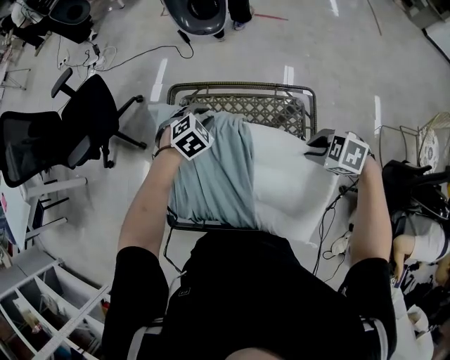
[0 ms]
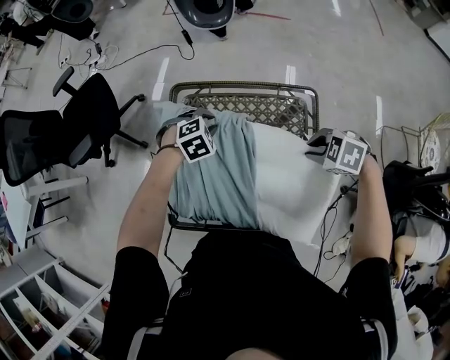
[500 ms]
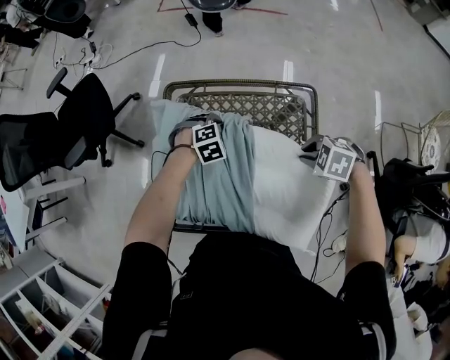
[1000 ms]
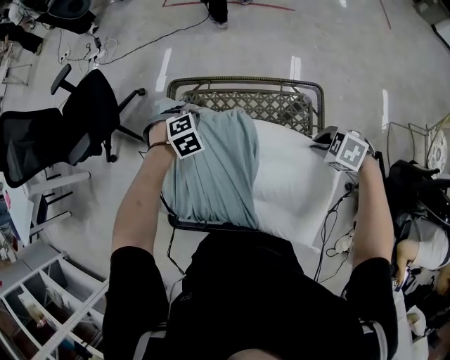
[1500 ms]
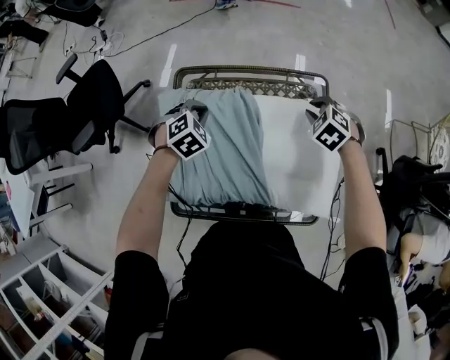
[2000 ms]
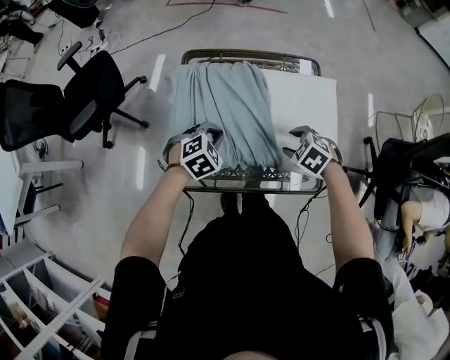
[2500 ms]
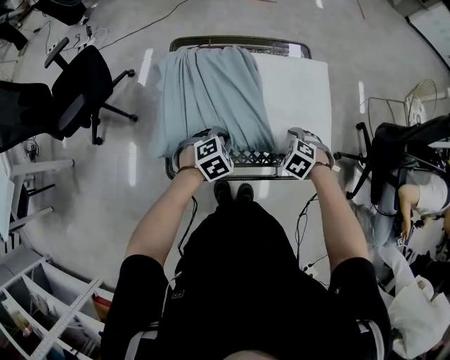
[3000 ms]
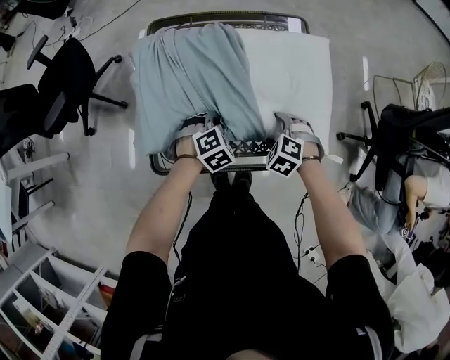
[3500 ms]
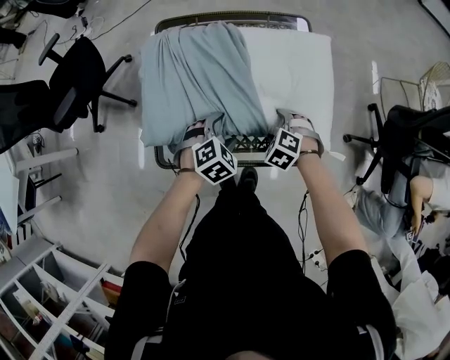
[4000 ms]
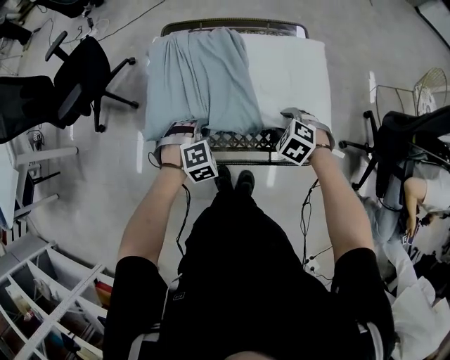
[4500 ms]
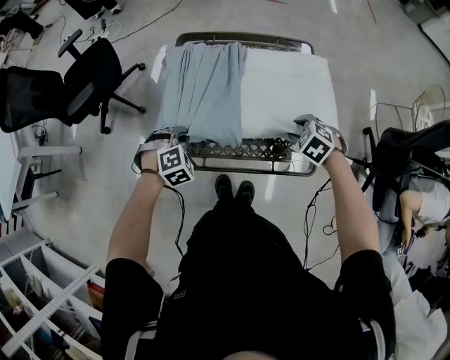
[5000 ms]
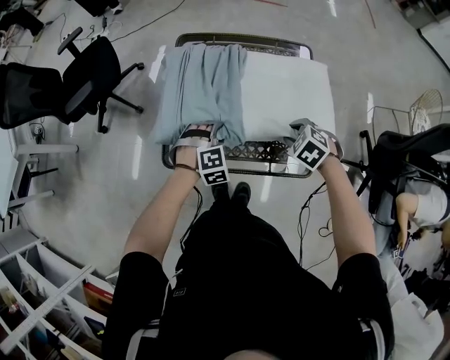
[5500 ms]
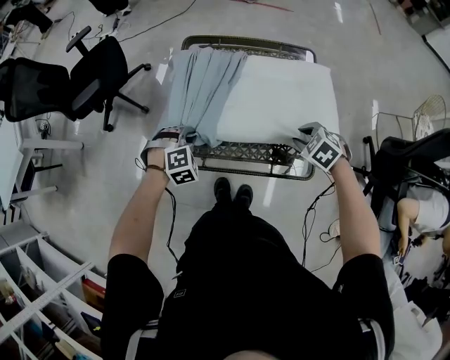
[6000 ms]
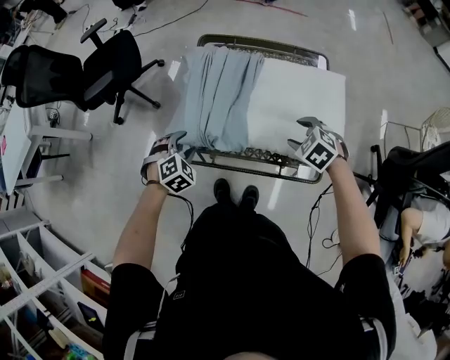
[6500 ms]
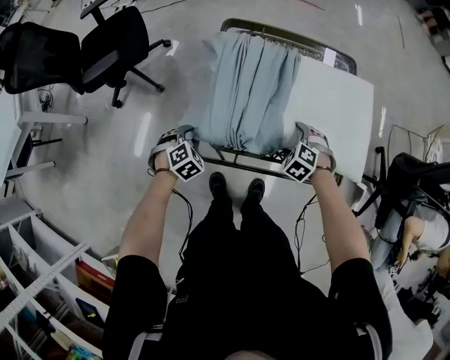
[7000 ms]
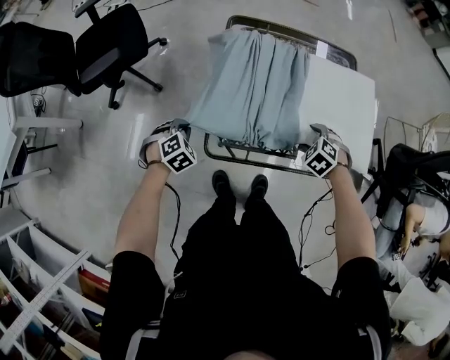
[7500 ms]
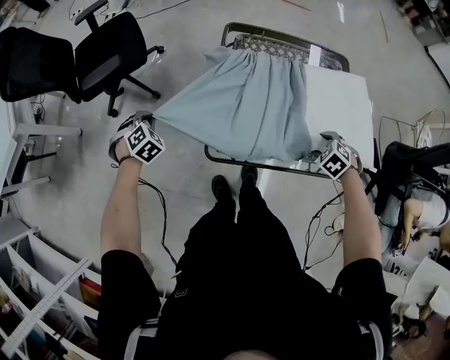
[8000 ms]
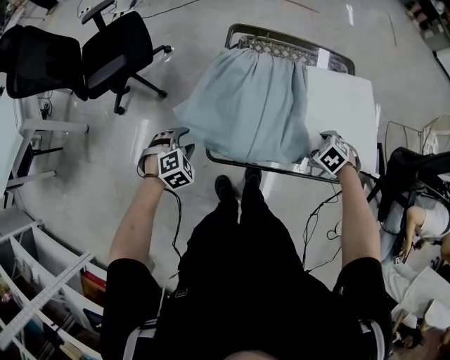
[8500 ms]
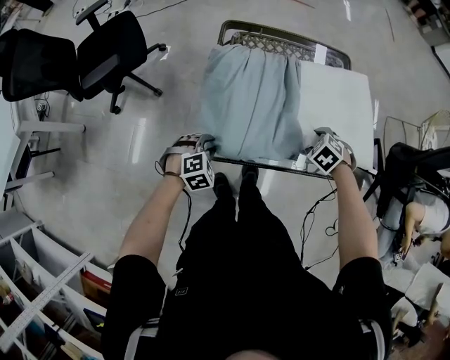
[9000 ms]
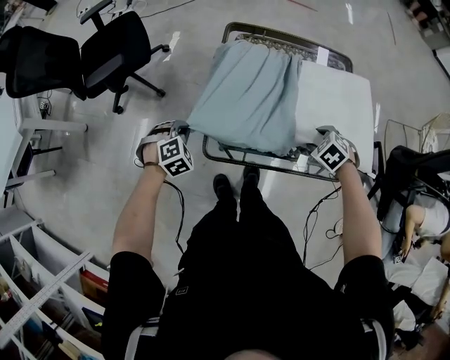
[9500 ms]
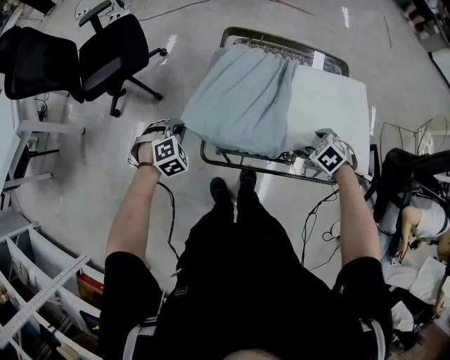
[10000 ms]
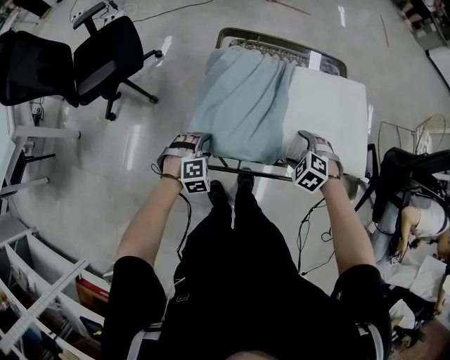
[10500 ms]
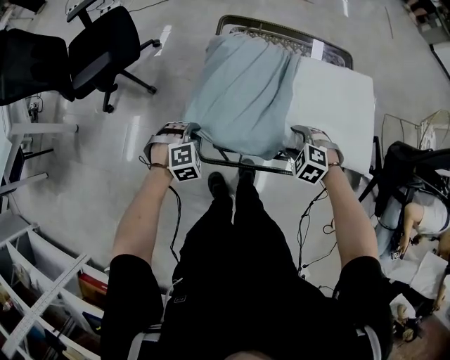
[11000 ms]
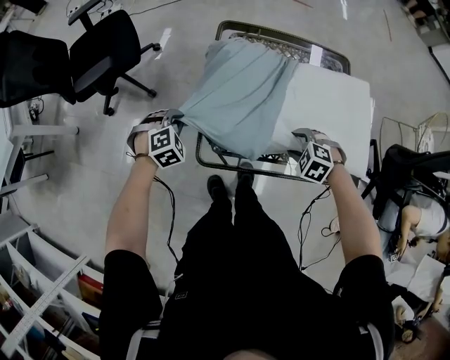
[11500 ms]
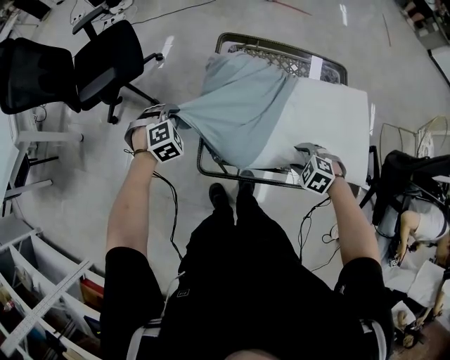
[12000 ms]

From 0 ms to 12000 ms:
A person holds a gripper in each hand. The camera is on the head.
From 0 ms to 2000 ms: The right gripper moves some 10 cm, and turns by some 30 degrees; the left gripper reaches roughly 10 cm downward, then returns.
From 2000 ms to 4000 ms: The right gripper changes place by about 30 cm, and opens, while the left gripper shifts by approximately 30 cm, and opens up.
From 4000 ms to 6000 ms: The right gripper goes roughly 10 cm upward, and closes. Meanwhile the left gripper moves some 15 cm, rotates about 30 degrees, and closes up.
From 6000 ms to 8000 ms: The right gripper opens and closes again, while the left gripper moves about 10 cm downward and comes back, turns by some 30 degrees, and opens and closes again.
From 8000 ms to 10000 ms: The left gripper opens, then closes once more.
From 10000 ms to 12000 ms: The left gripper ends up approximately 10 cm from where it was, and opens and closes again, while the right gripper opens, then closes again.

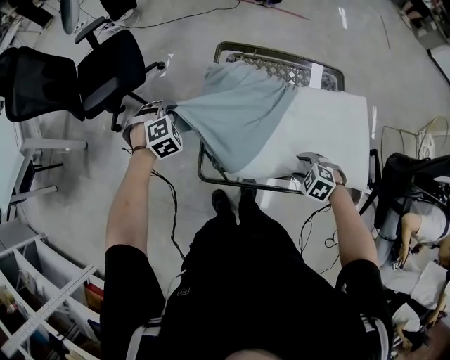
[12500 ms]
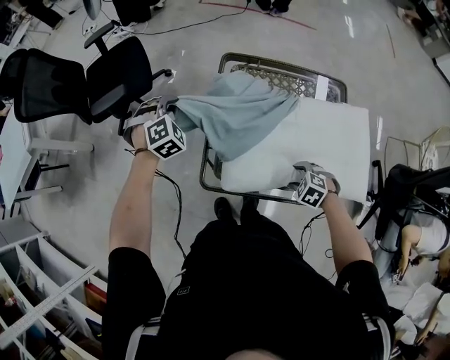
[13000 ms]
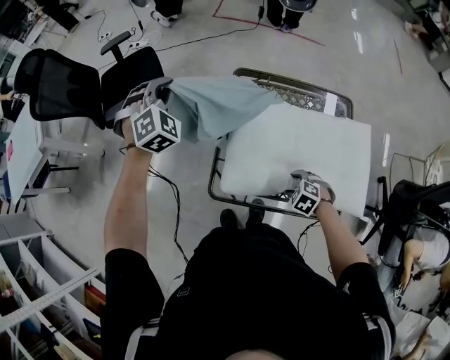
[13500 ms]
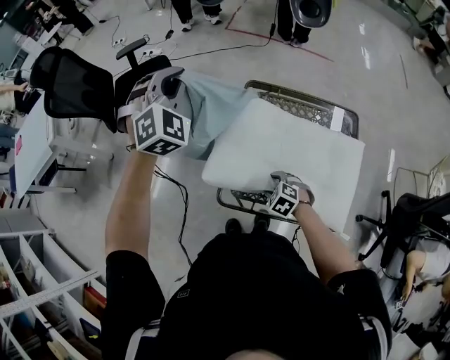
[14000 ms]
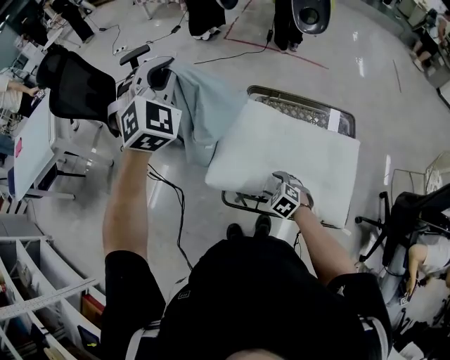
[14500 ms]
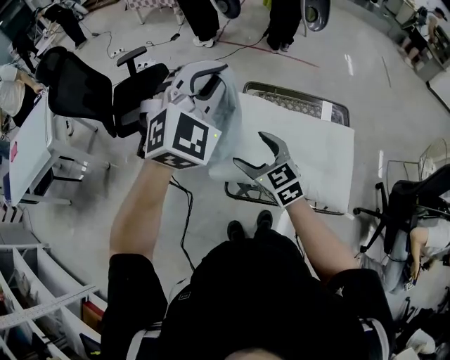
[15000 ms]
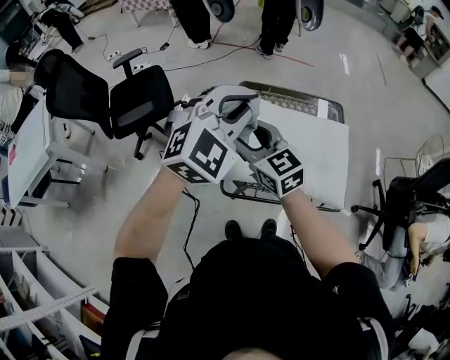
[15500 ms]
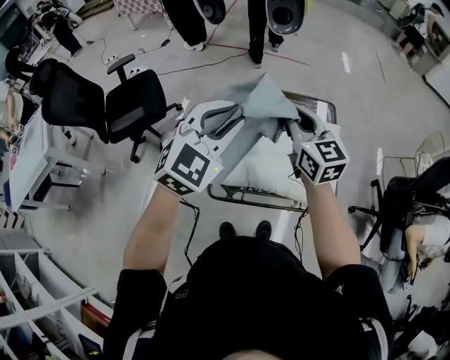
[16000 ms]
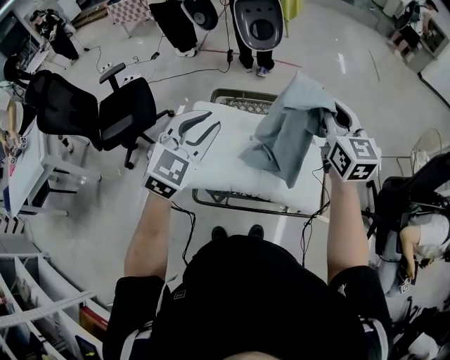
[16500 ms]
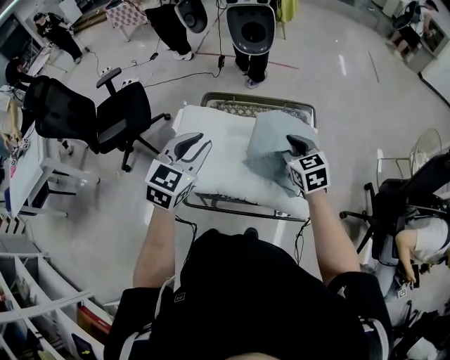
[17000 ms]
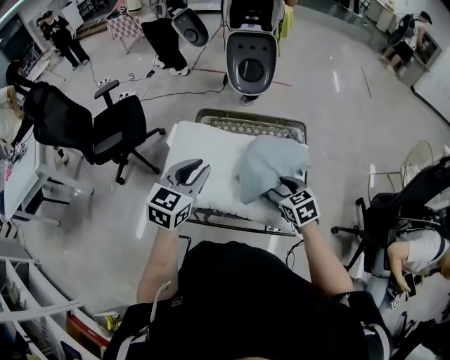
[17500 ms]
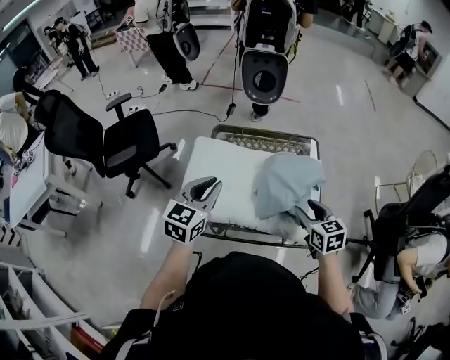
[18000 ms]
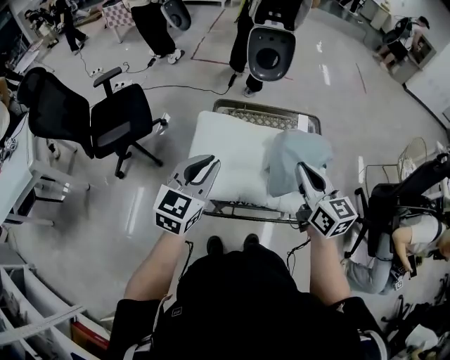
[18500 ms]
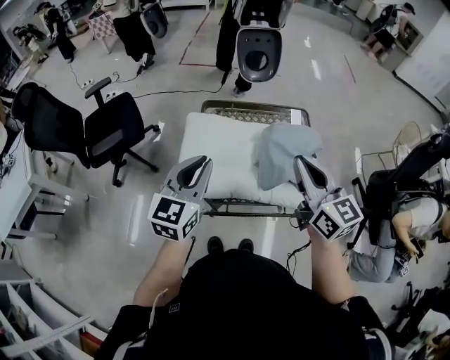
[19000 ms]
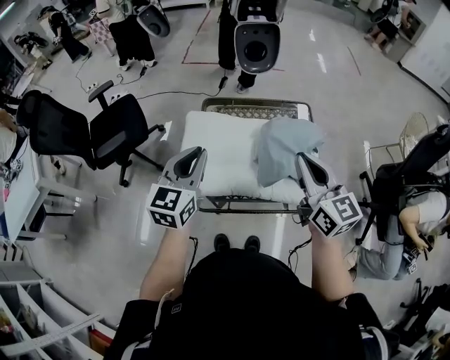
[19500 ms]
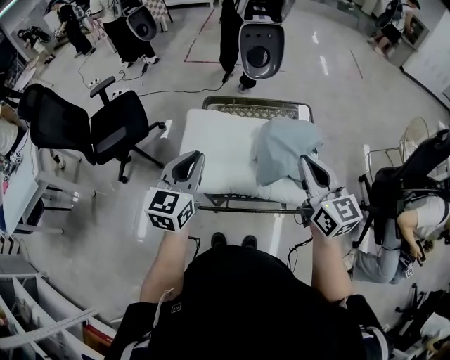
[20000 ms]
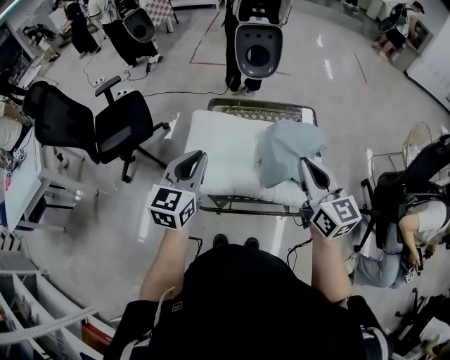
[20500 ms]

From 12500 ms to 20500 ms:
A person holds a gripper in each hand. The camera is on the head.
From 12500 ms to 14500 ms: The right gripper ends up some 20 cm from where it was. The left gripper is displaced upward by approximately 40 cm, and points its fingers roughly 40 degrees further upward.
From 14500 ms to 16500 ms: The left gripper moves approximately 30 cm, rotates some 40 degrees, and opens, while the right gripper shifts about 40 cm upward, angles its fingers upward, by roughly 60 degrees, and closes its fingers.
From 16500 ms to 18500 ms: The right gripper heads backward and to the left, covering about 15 cm, moves roughly 25 cm downward and comes back, and opens, then closes once more, while the left gripper is displaced to the left, downward and backward by about 10 cm, and turns by some 20 degrees.
From 18500 ms to 20500 ms: The right gripper changes place by some 5 cm.

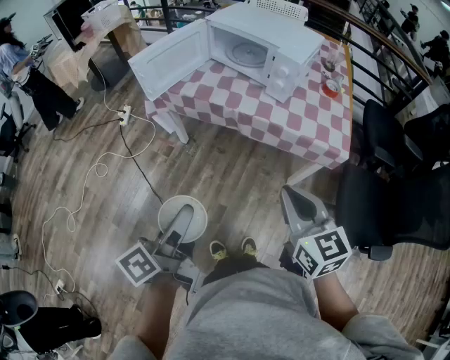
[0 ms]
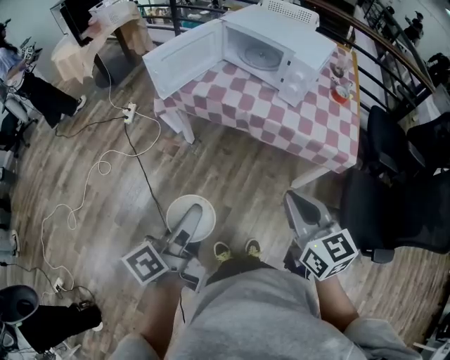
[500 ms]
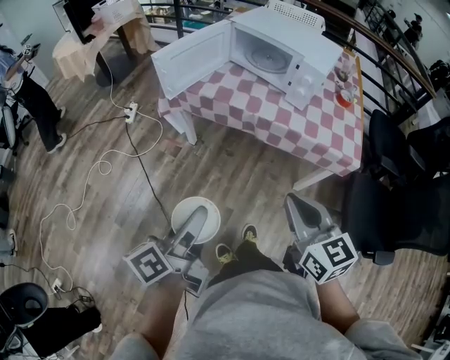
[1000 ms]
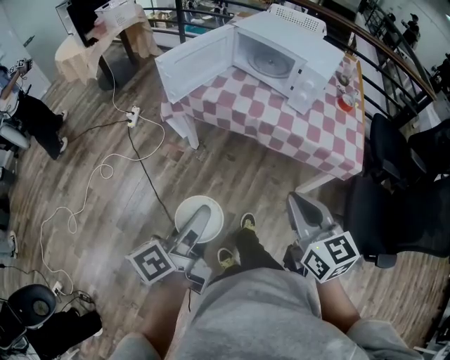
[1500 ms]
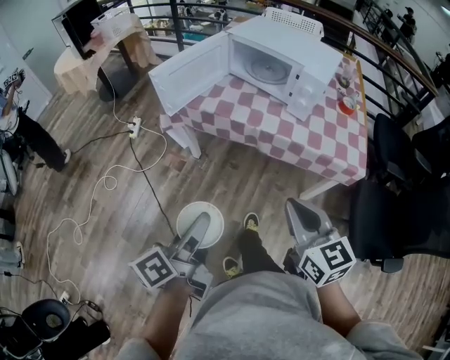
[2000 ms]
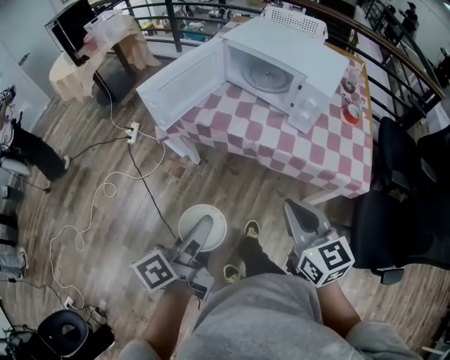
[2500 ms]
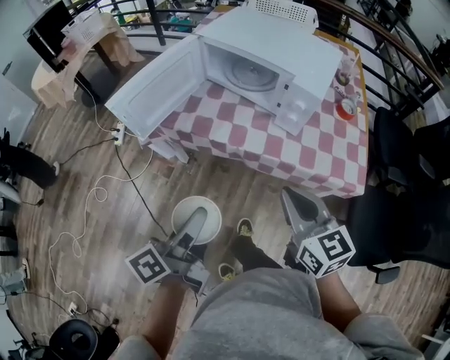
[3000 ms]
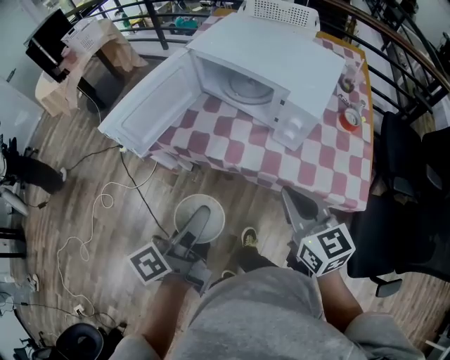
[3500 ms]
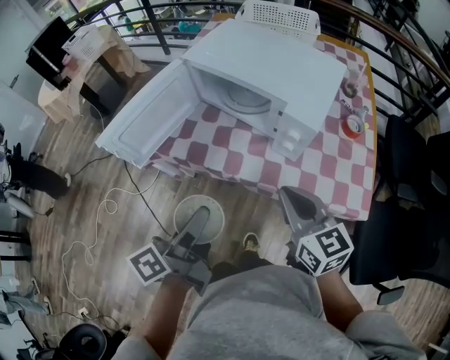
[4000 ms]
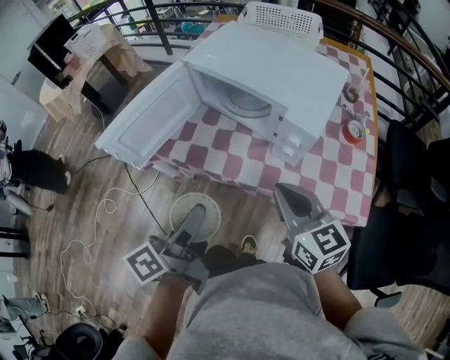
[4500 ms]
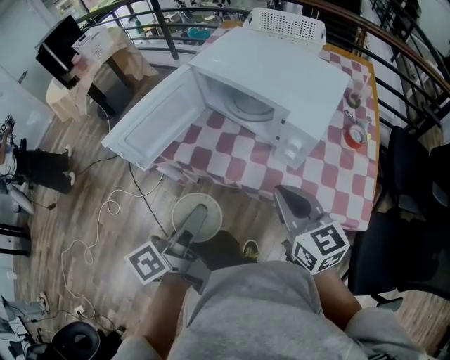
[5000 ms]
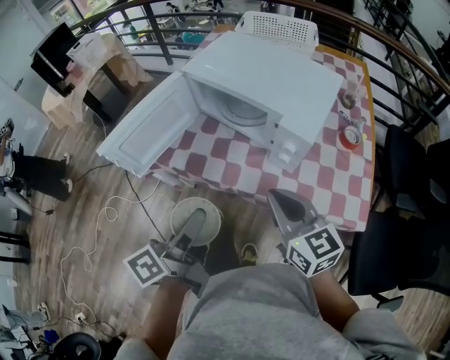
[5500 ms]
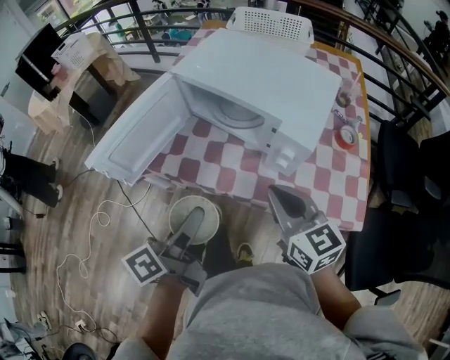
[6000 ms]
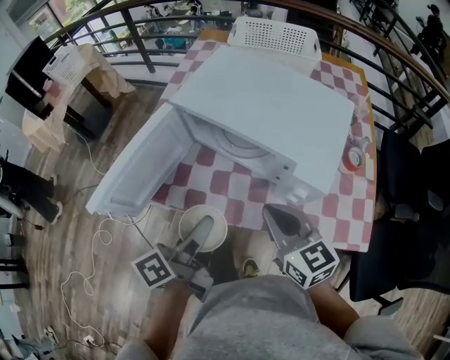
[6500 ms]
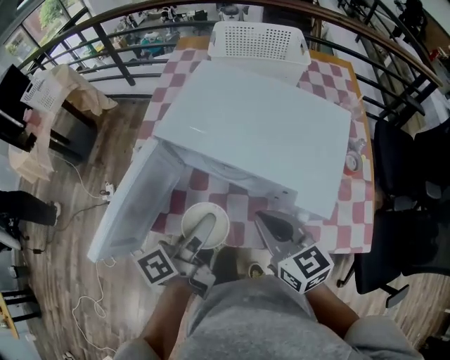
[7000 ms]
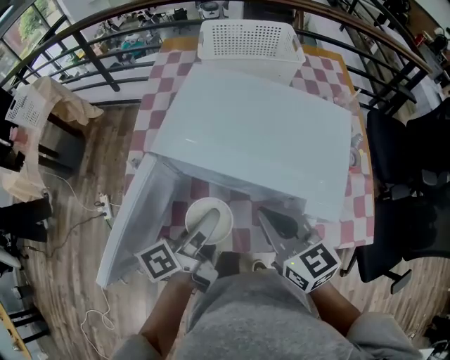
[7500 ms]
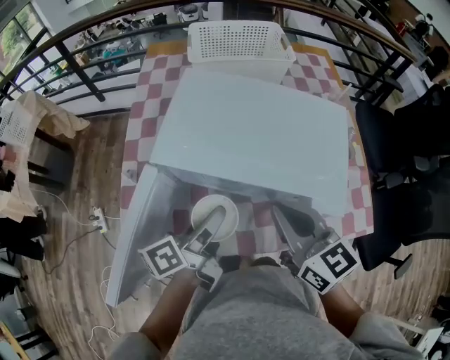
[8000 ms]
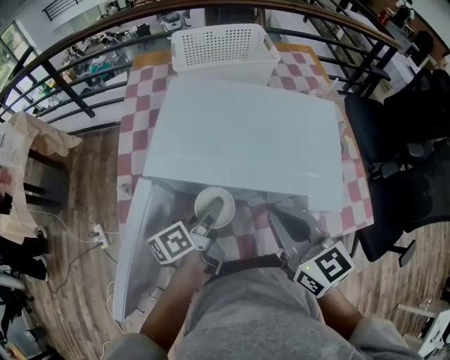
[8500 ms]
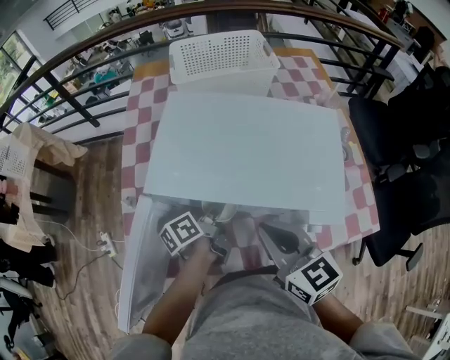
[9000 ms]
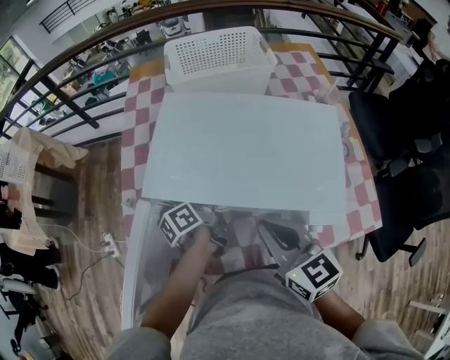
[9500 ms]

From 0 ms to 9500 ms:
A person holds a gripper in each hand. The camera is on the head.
From 0 ms to 2000 ms: The two grippers go about 5 cm to the left.
From 2000 ms to 4000 ms: The two grippers go roughly 25 cm forward.
From 4000 ms to 5500 ms: There are only small adjustments of the grippers.
From 5500 ms to 7500 ms: Both grippers move forward, approximately 25 cm. The left gripper swivels roughly 20 degrees.
From 7500 ms to 9500 ms: The left gripper moves forward and downward, some 20 cm.
